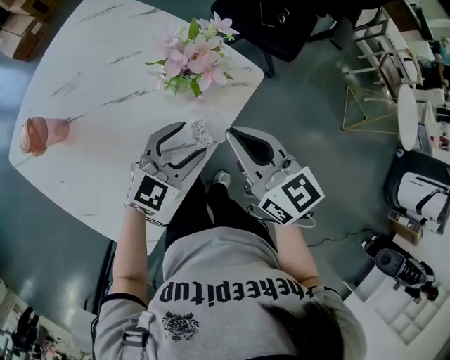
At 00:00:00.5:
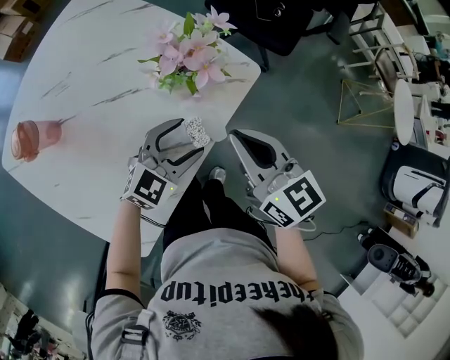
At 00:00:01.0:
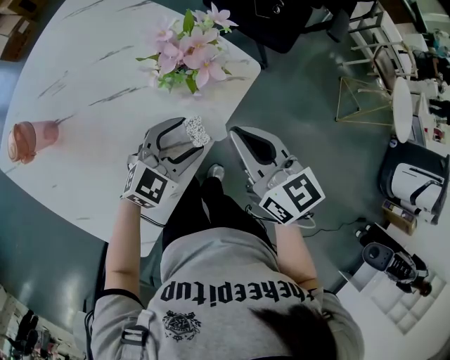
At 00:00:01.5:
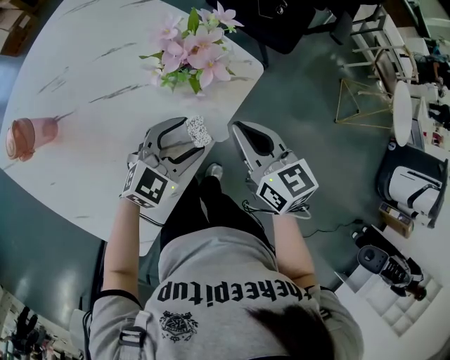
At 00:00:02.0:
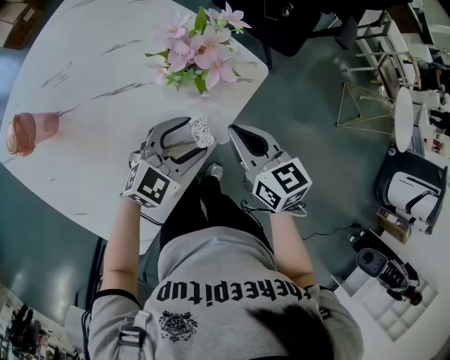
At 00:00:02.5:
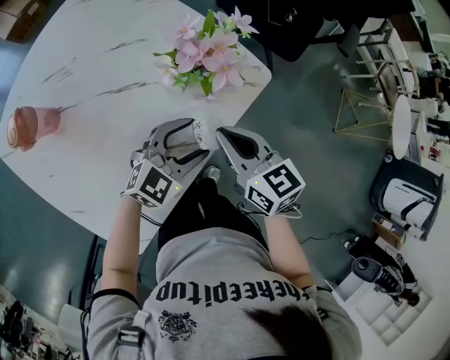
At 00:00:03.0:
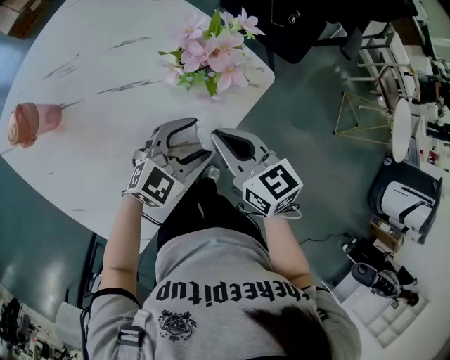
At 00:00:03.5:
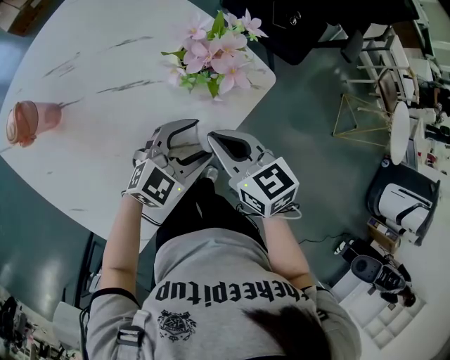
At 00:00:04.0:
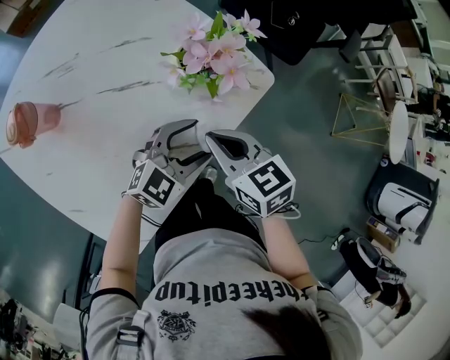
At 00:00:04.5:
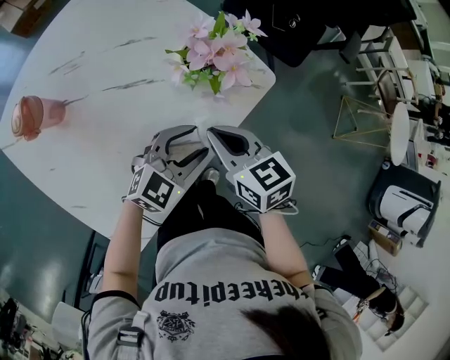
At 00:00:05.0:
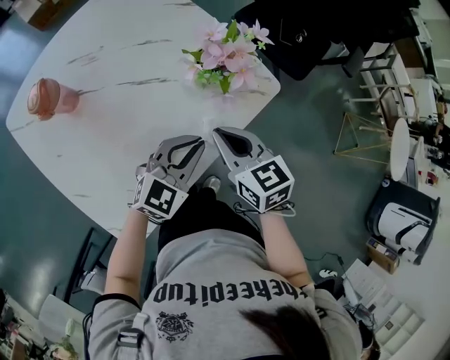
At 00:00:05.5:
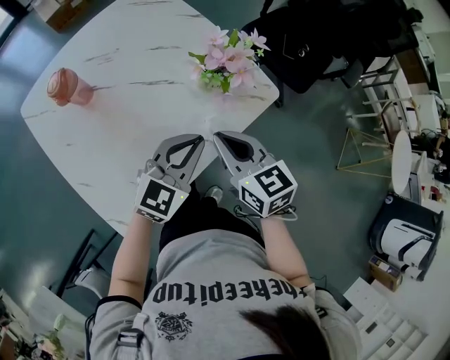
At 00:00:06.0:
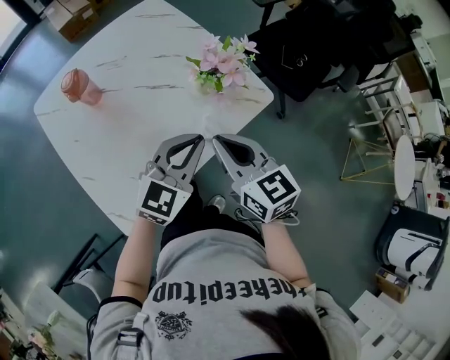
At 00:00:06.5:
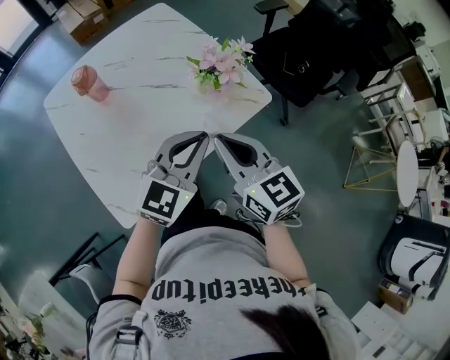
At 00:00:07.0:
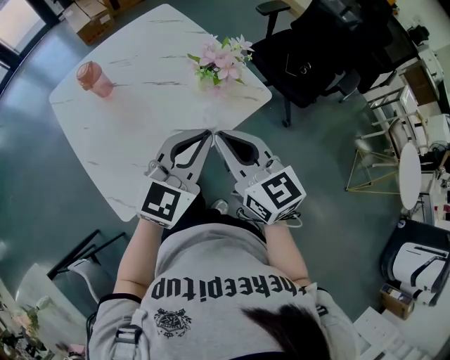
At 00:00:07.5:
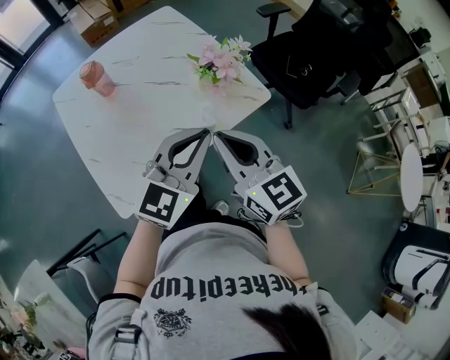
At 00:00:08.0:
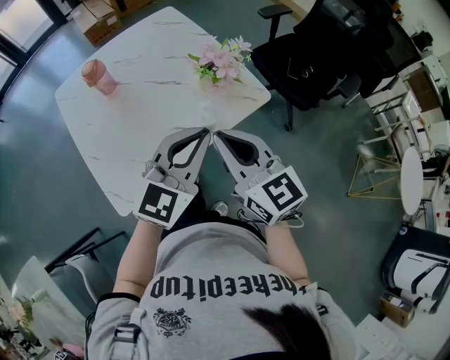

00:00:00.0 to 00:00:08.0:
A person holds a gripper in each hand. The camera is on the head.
00:00:00.0 to 00:00:02.0: The right gripper heads downward, covering approximately 10 cm.
00:00:02.0 to 00:00:04.0: The right gripper shifts some 5 cm to the left.
00:00:04.0 to 00:00:06.0: The right gripper is displaced upward and backward by approximately 10 cm, and rotates some 20 degrees. The left gripper heads upward, covering some 15 cm, rotates about 30 degrees, and closes its fingers.
00:00:06.0 to 00:00:08.0: The grippers both shift upward and backward by some 10 cm.

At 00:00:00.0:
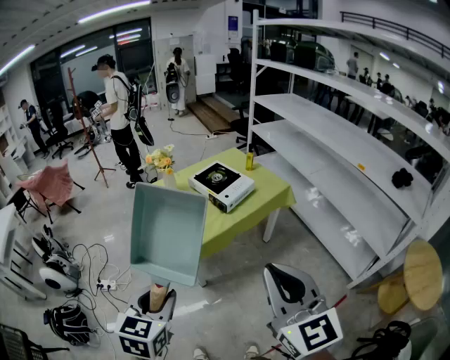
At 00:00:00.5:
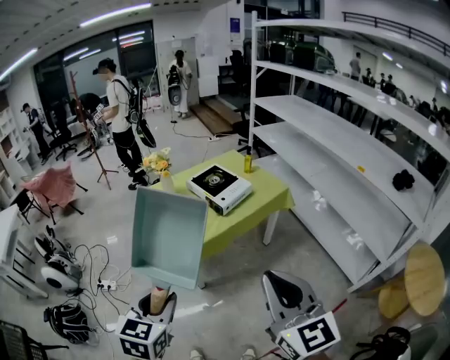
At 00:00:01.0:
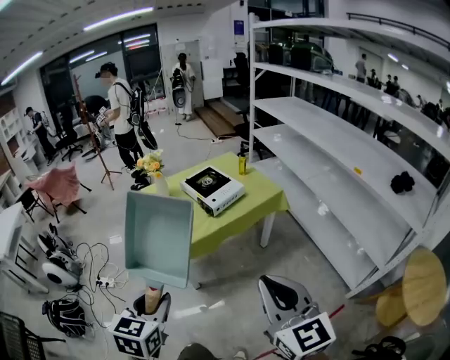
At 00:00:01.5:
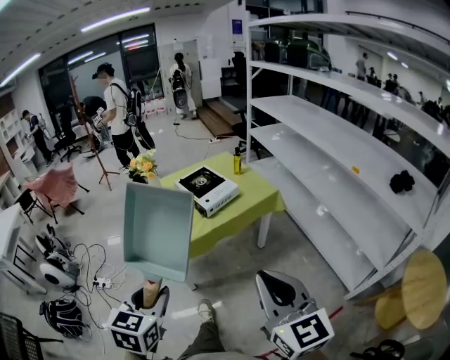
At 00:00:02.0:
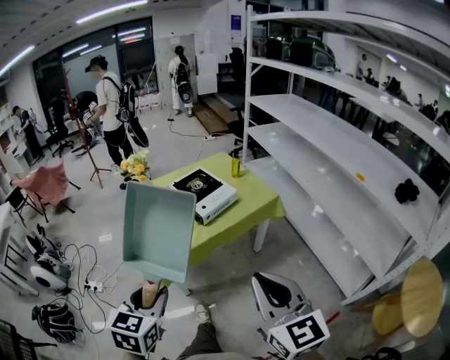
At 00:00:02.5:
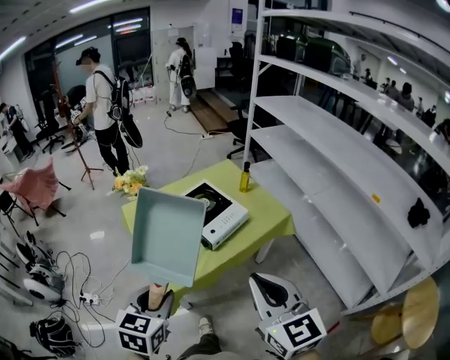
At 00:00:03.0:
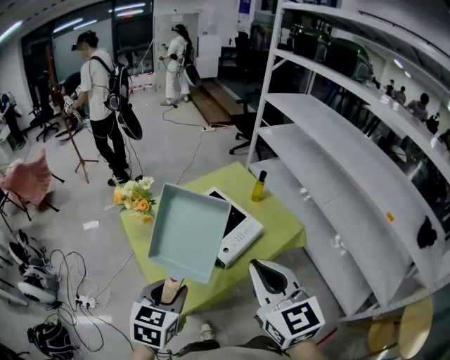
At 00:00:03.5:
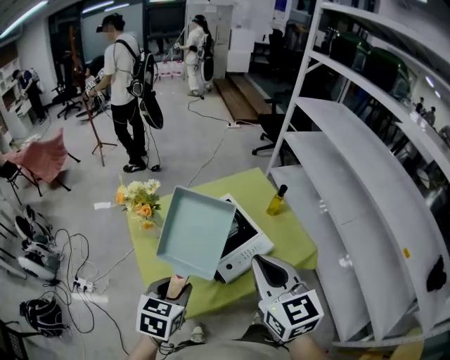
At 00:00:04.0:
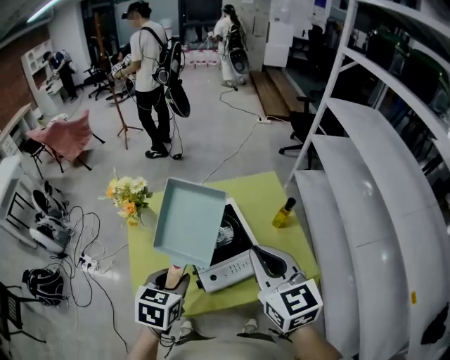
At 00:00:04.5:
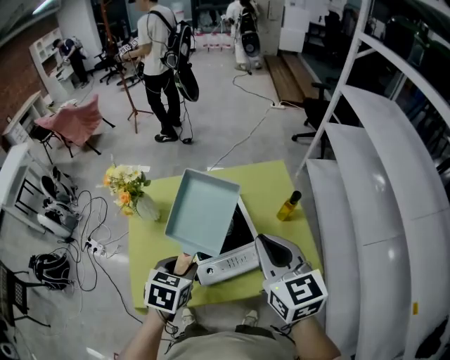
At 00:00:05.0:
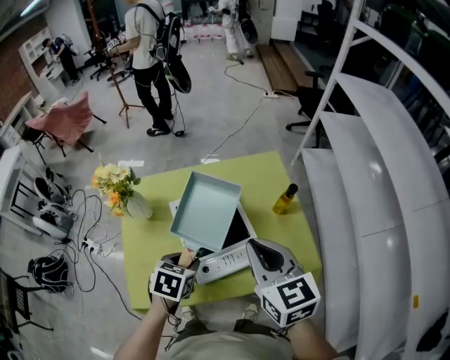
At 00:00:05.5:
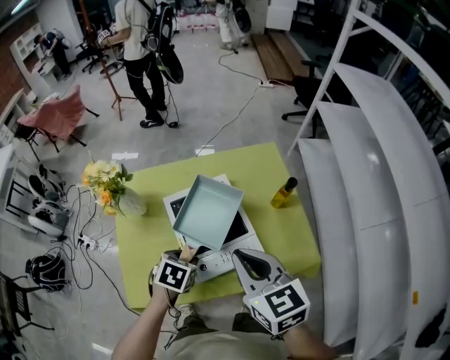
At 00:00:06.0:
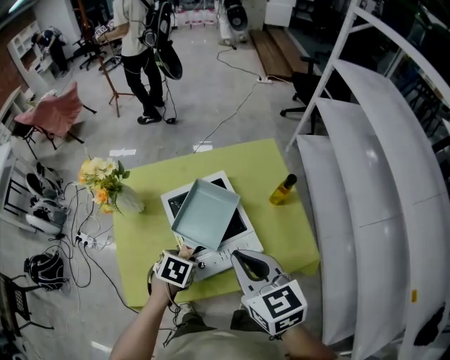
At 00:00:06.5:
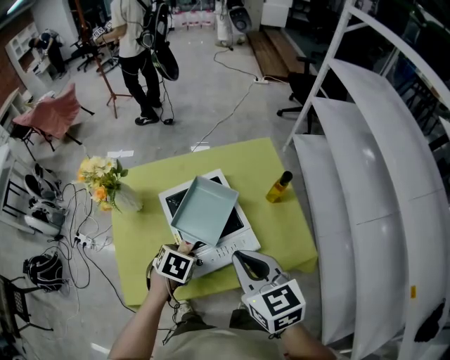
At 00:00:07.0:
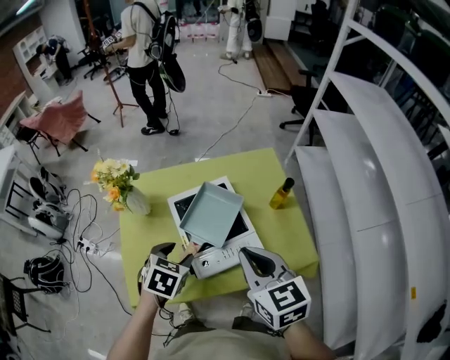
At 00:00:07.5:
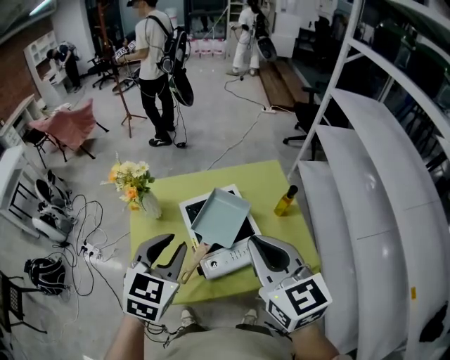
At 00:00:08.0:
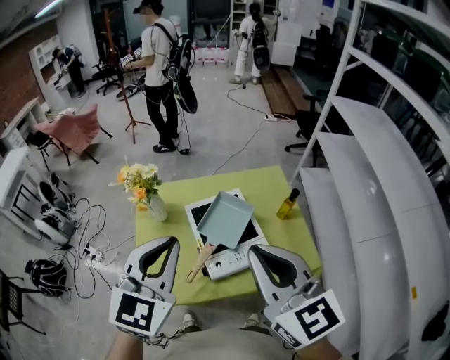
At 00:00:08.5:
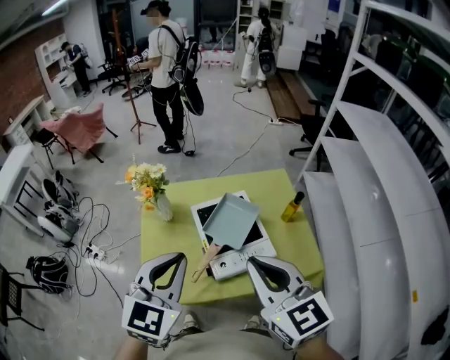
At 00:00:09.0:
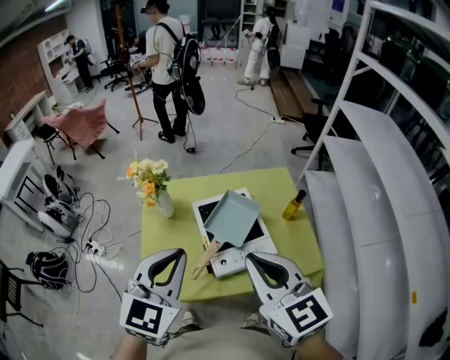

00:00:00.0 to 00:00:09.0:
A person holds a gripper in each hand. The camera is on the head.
00:00:00.0 to 00:00:02.0: The left gripper travels to the right and forward by about 15 cm. Meanwhile the right gripper travels to the right, forward and downward by approximately 15 cm.
00:00:02.0 to 00:00:04.5: The two grippers travel together, forward, roughly 50 cm. The left gripper turns by approximately 30 degrees. Meanwhile the right gripper swivels roughly 30 degrees.
00:00:04.5 to 00:00:07.0: The right gripper changes place by approximately 5 cm. The left gripper reaches roughly 10 cm downward, then returns, and opens up.
00:00:07.0 to 00:00:09.0: The left gripper moves upward, some 25 cm, tips its fingers upward by about 40 degrees, and closes; the right gripper moves upward, to the left and backward, about 15 cm.

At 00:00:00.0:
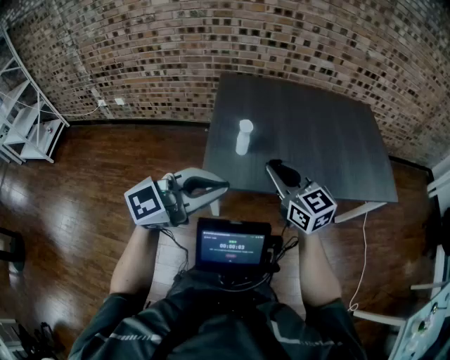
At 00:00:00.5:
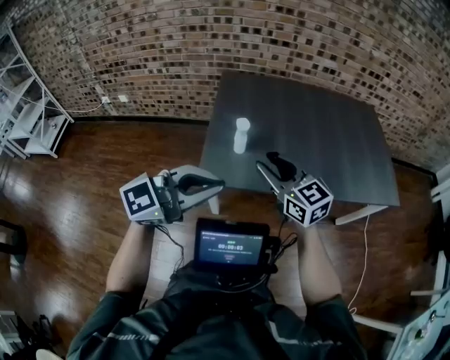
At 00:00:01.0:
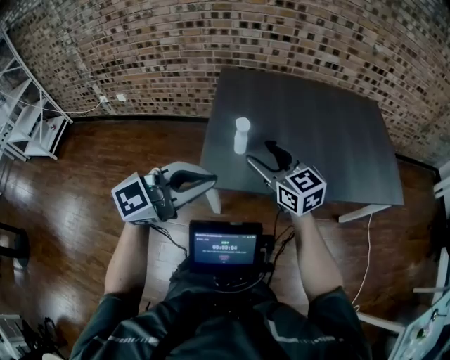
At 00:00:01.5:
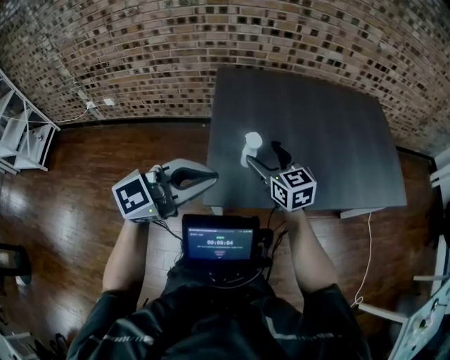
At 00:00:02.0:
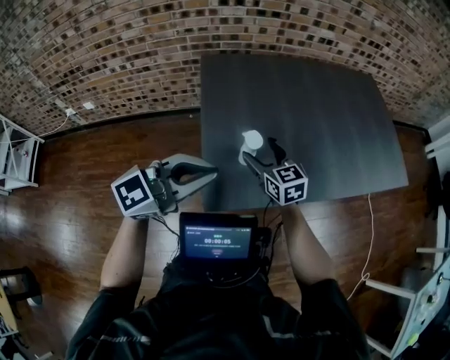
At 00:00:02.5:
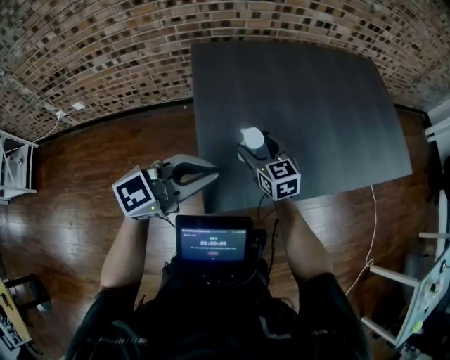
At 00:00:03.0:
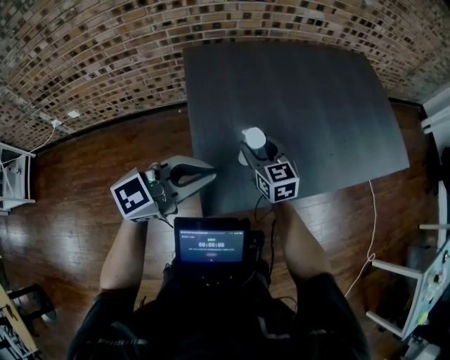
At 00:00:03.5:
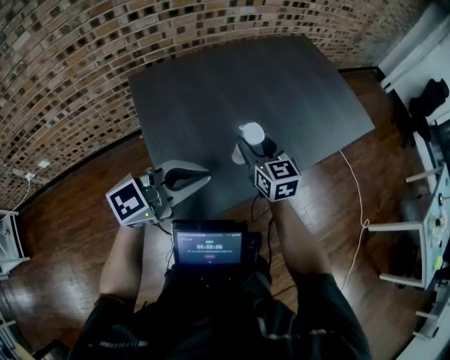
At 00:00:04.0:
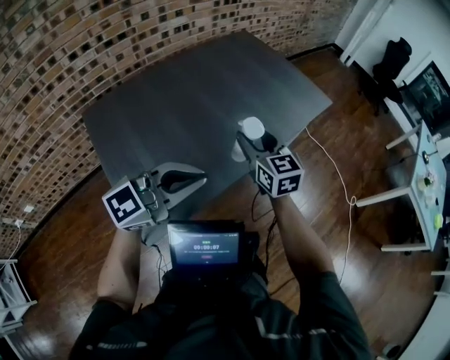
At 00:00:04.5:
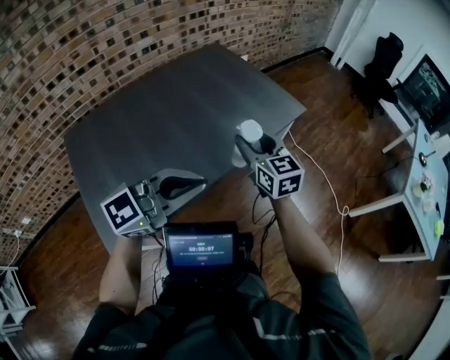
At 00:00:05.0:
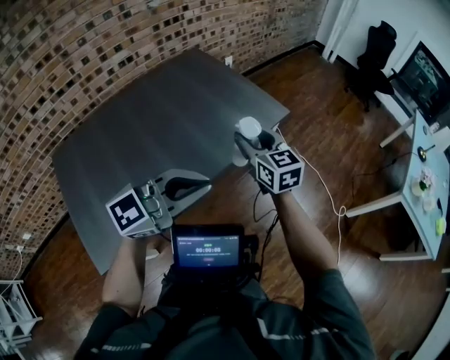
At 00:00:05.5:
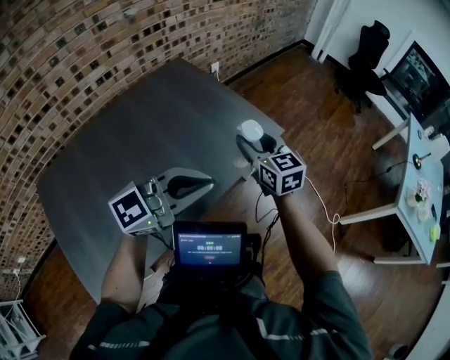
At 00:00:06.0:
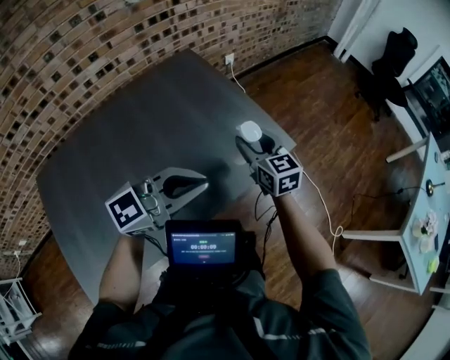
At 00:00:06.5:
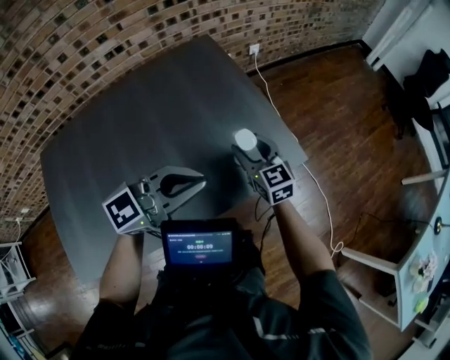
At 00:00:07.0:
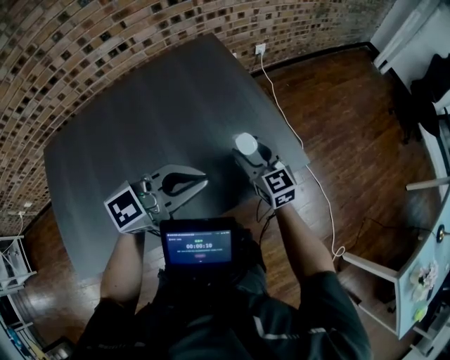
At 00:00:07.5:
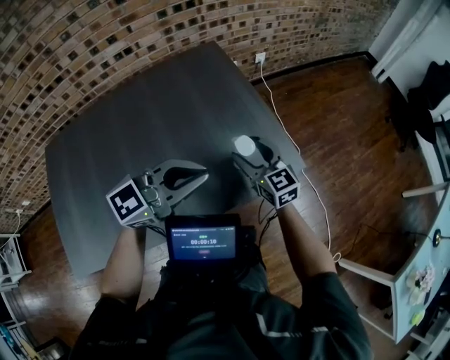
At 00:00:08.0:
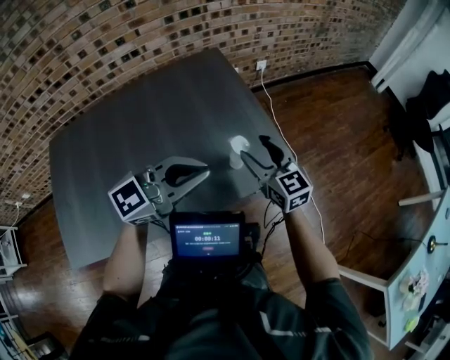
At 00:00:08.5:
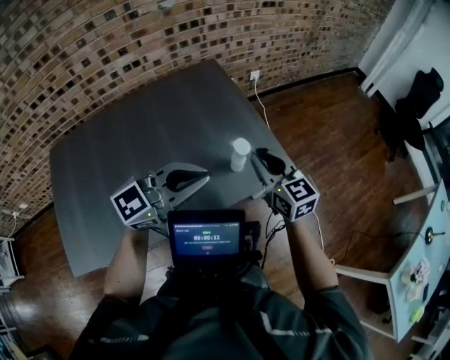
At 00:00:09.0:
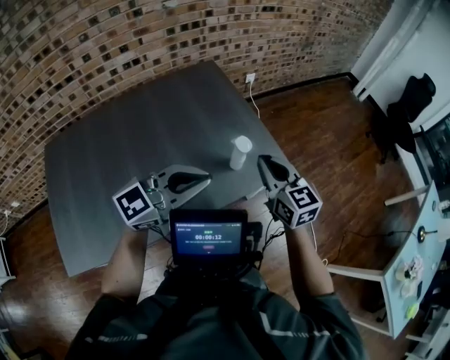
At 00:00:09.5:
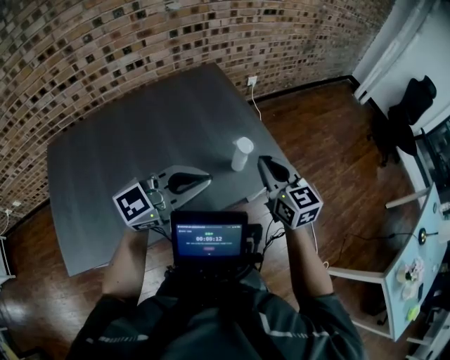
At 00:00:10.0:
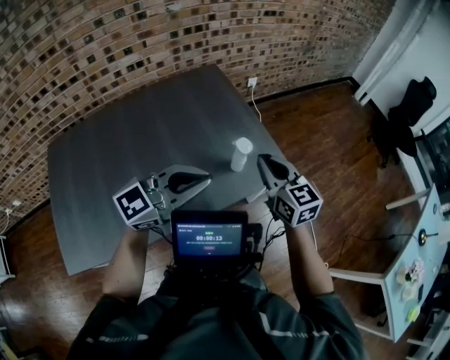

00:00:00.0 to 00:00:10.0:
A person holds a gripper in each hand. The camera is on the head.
00:00:00.0 to 00:00:02.0: The right gripper heads forward, downward and to the left, covering approximately 30 cm, rotates roughly 20 degrees, and opens up. The left gripper shifts roughly 20 cm forward and to the left.
00:00:02.0 to 00:00:04.0: The right gripper ends up about 30 cm from where it was, changes its angle by approximately 40 degrees, and closes up, while the left gripper ends up approximately 25 cm from where it was, and rotates roughly 30 degrees.
00:00:04.0 to 00:00:06.0: The two grippers travel together, forward and to the right, approximately 50 cm.
00:00:06.0 to 00:00:08.0: The right gripper reaches about 10 cm downward, then returns; the left gripper travels forward by about 5 cm.
00:00:08.0 to 00:00:10.0: The left gripper goes approximately 5 cm backward. Meanwhile the right gripper moves backward and upward, about 10 cm, and closes up.
